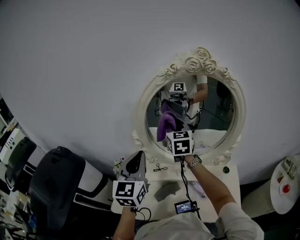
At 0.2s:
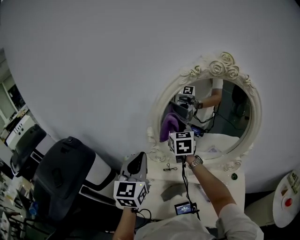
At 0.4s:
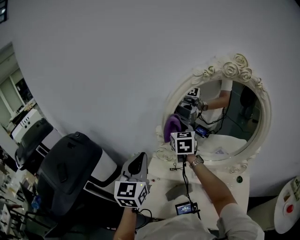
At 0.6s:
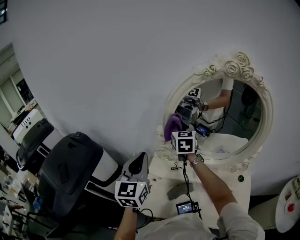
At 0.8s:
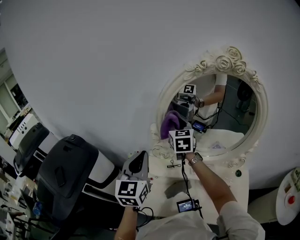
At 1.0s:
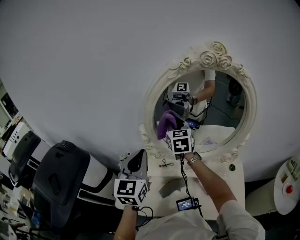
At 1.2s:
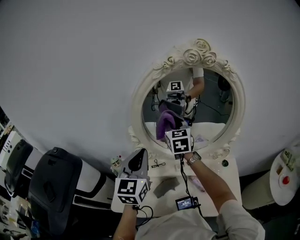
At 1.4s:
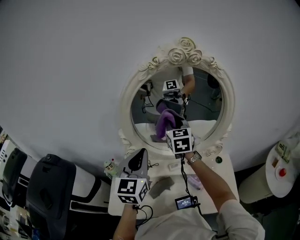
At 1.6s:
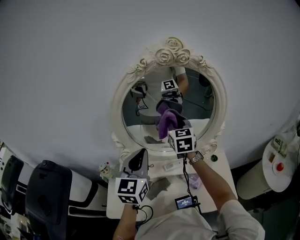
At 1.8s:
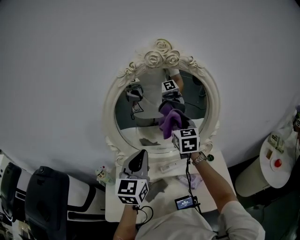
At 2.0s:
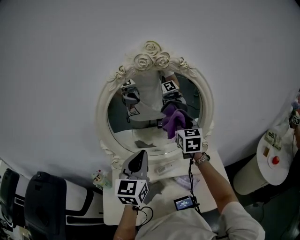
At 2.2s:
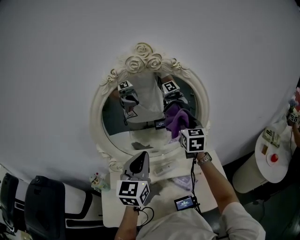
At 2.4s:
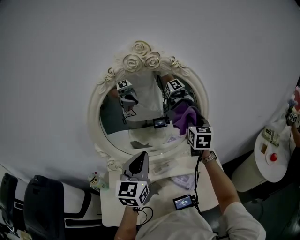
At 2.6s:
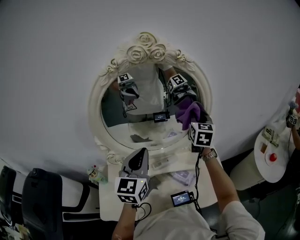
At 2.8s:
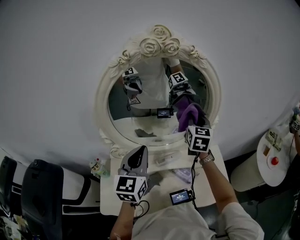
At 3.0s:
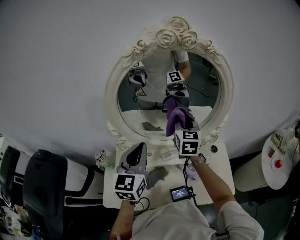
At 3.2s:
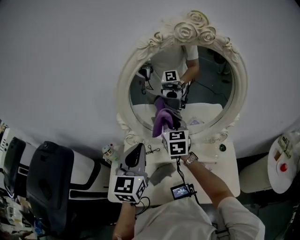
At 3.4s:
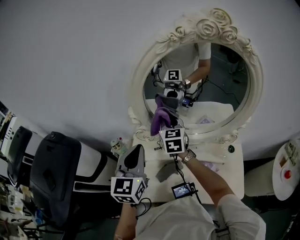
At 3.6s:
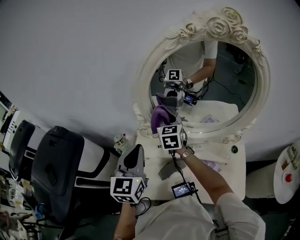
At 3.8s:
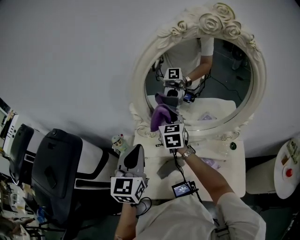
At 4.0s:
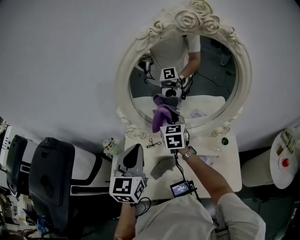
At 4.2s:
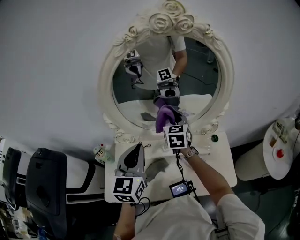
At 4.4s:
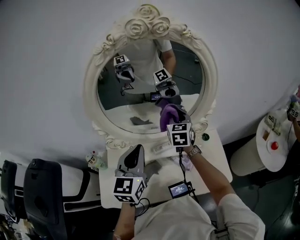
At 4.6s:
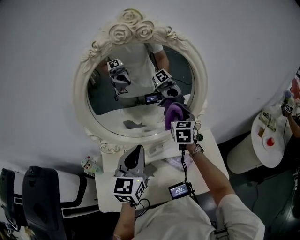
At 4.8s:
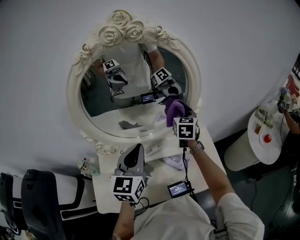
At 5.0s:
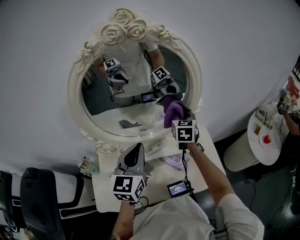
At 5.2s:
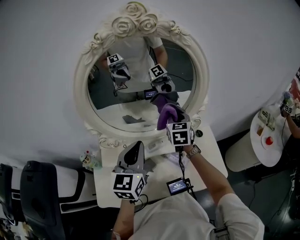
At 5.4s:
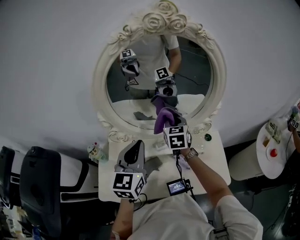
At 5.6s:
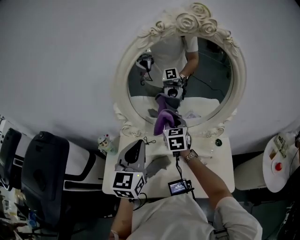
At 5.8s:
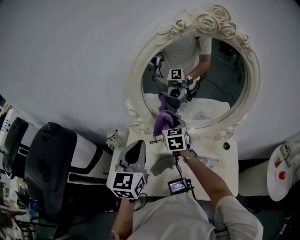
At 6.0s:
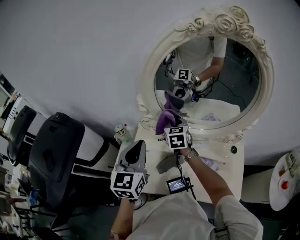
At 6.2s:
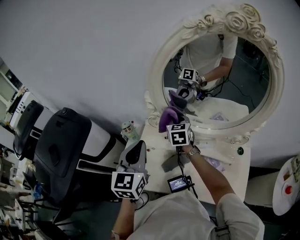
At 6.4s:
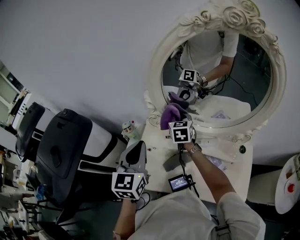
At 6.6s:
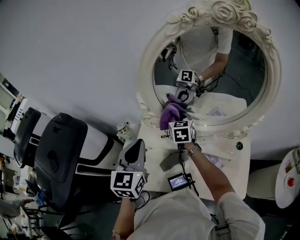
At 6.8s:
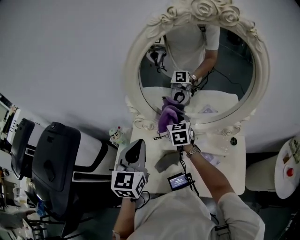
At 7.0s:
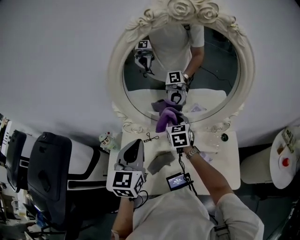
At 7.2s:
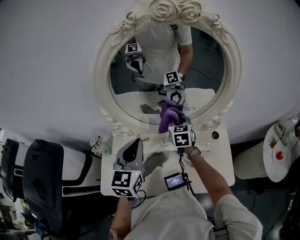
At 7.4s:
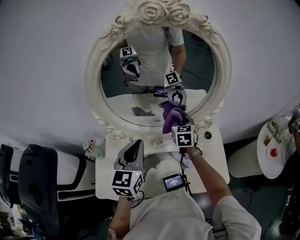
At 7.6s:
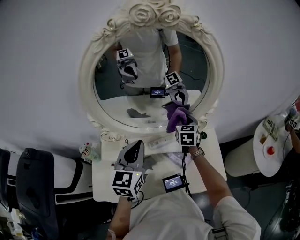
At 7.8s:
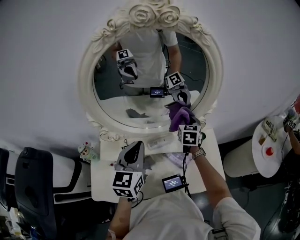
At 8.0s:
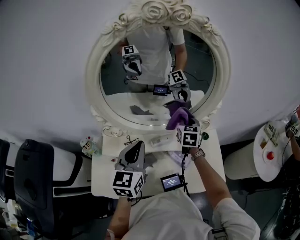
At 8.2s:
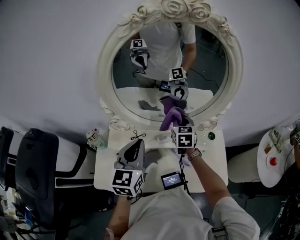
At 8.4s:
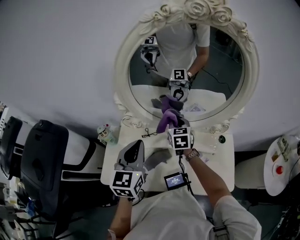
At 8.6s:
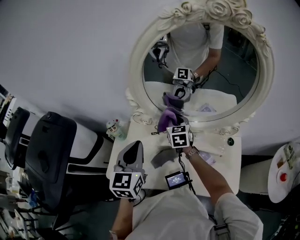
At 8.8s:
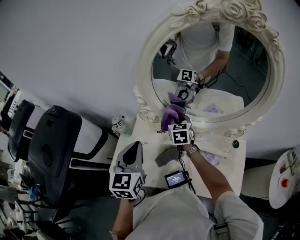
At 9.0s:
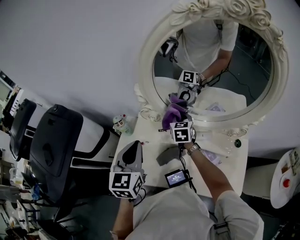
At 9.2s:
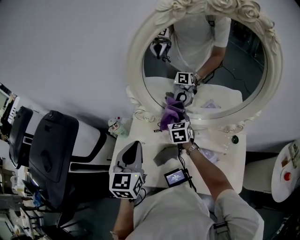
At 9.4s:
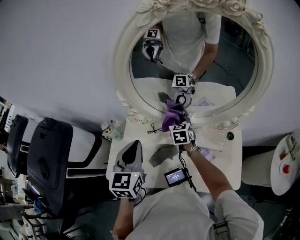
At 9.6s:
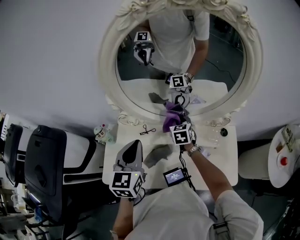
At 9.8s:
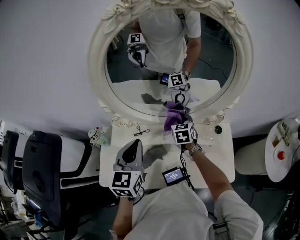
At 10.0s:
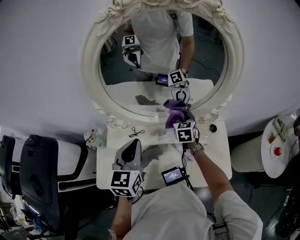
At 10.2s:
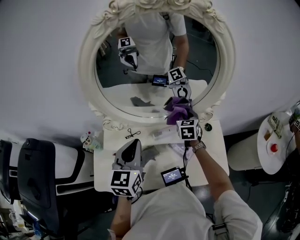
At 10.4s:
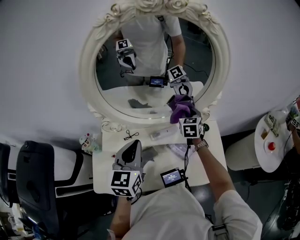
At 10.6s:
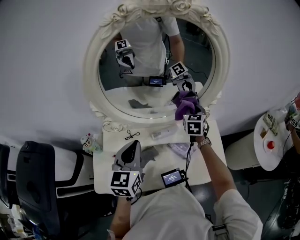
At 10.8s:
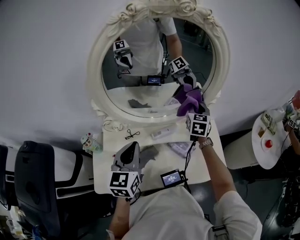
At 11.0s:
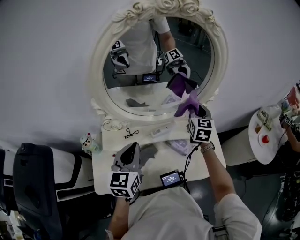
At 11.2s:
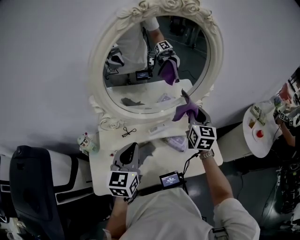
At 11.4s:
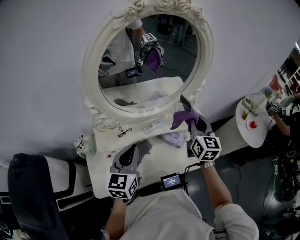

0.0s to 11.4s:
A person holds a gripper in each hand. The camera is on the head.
0.0s to 1.4s: The left gripper moves some 10 cm to the left and comes back, while the right gripper moves to the right, about 5 cm.
1.4s to 2.8s: The left gripper shifts approximately 5 cm to the right, while the right gripper moves to the right, some 20 cm, and rotates roughly 20 degrees.
2.8s to 4.2s: The right gripper travels to the left and downward by some 20 cm, while the left gripper travels to the left and back again, some 15 cm each way.
4.2s to 5.6s: The right gripper reaches about 20 cm to the right, then returns. Meanwhile the left gripper reaches roughly 10 cm to the right, then returns.
5.6s to 7.2s: The right gripper heads to the right and downward, covering approximately 10 cm; the left gripper moves roughly 10 cm to the left and comes back.
7.2s to 8.6s: The left gripper moves roughly 10 cm. The right gripper changes place by about 15 cm.
8.6s to 10.0s: The right gripper travels to the right by approximately 20 cm. The left gripper moves to the right, some 10 cm.
10.0s to 11.4s: The left gripper moves backward, some 10 cm. The right gripper shifts roughly 25 cm upward, backward and to the right, and changes its angle by approximately 30 degrees.

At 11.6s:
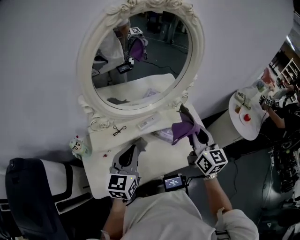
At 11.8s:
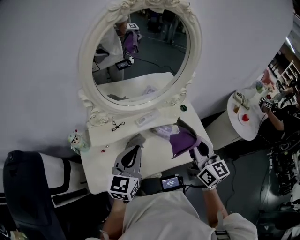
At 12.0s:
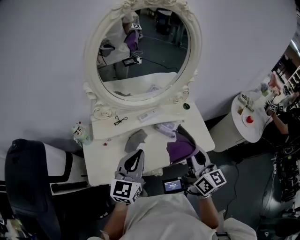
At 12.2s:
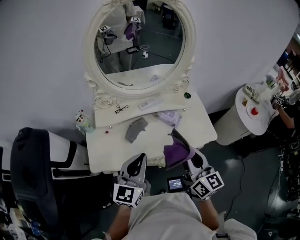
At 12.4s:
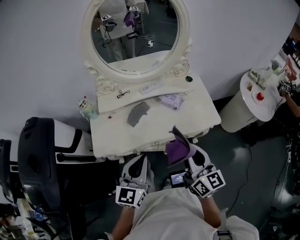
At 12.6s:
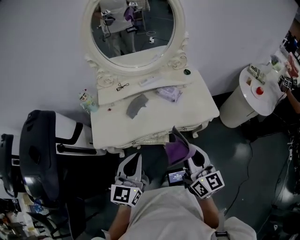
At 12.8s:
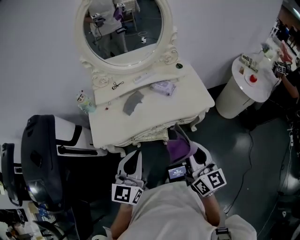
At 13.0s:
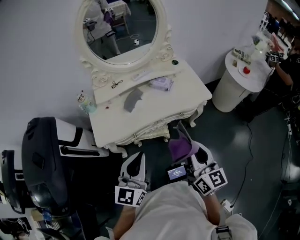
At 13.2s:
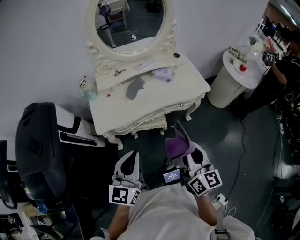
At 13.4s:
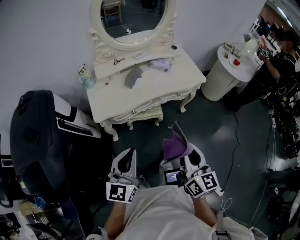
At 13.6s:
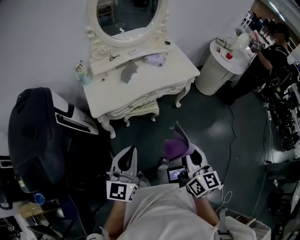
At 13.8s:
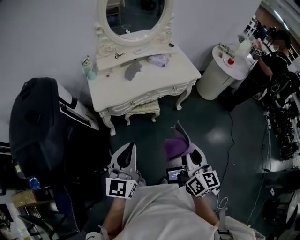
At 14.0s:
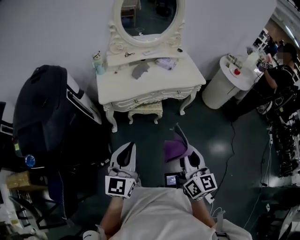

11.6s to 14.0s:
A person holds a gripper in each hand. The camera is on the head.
11.6s to 12.8s: The grippers both shift backward by about 35 cm.
12.8s to 14.0s: Both grippers move backward, approximately 35 cm.

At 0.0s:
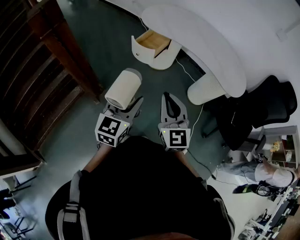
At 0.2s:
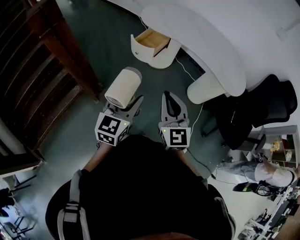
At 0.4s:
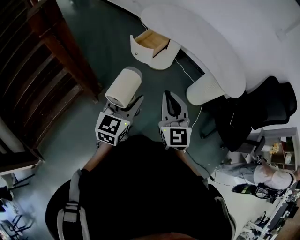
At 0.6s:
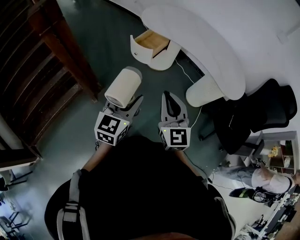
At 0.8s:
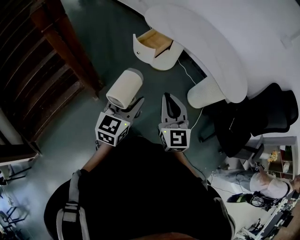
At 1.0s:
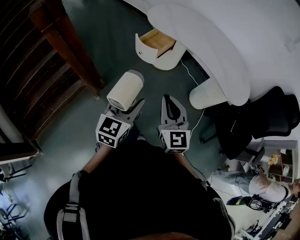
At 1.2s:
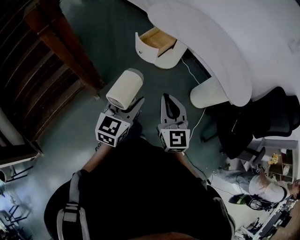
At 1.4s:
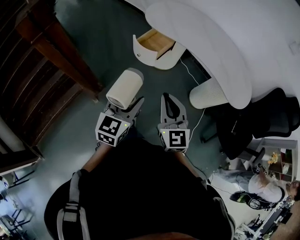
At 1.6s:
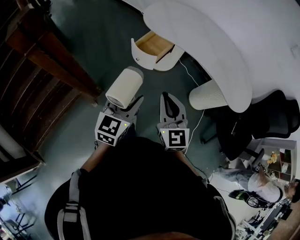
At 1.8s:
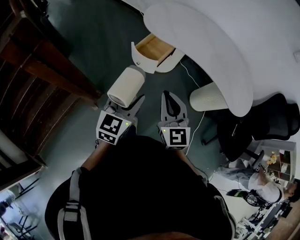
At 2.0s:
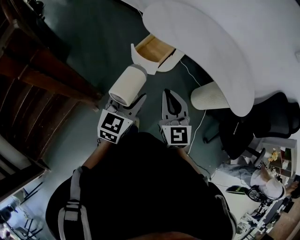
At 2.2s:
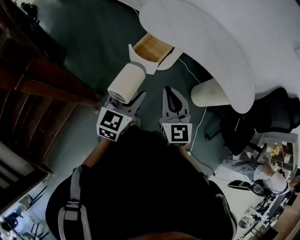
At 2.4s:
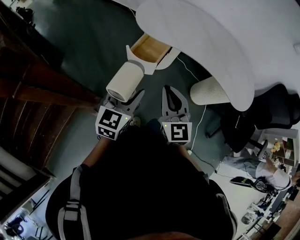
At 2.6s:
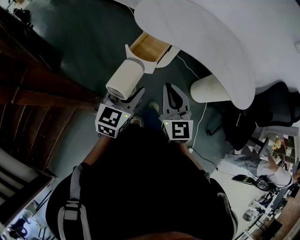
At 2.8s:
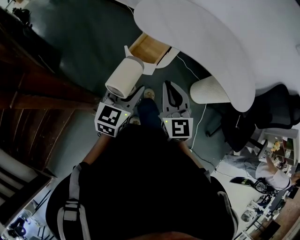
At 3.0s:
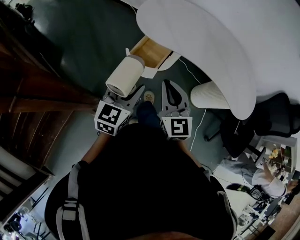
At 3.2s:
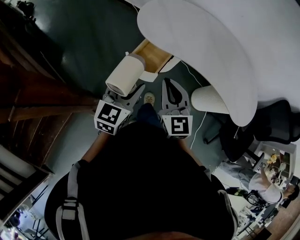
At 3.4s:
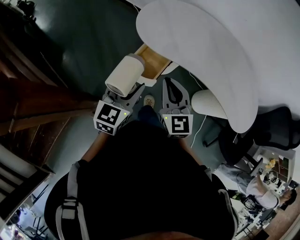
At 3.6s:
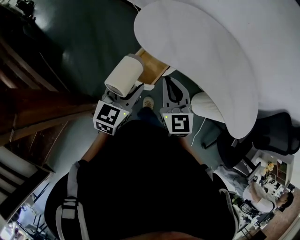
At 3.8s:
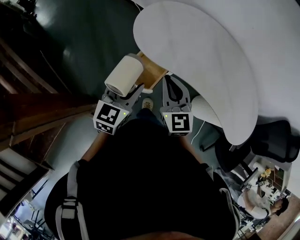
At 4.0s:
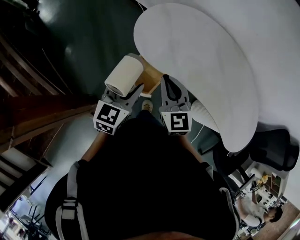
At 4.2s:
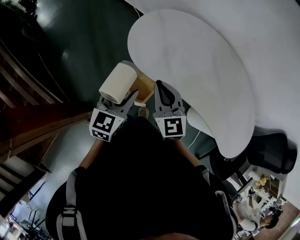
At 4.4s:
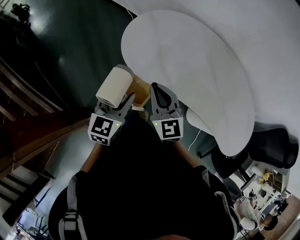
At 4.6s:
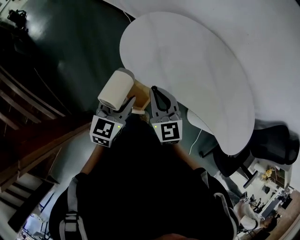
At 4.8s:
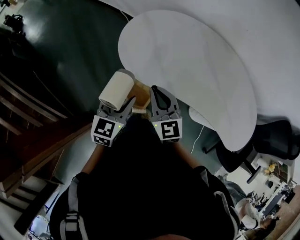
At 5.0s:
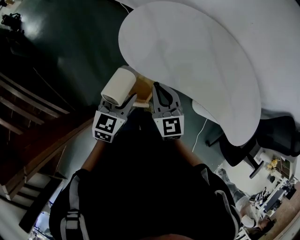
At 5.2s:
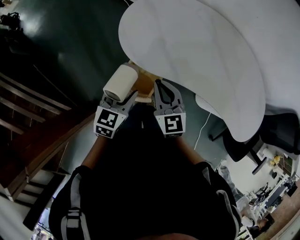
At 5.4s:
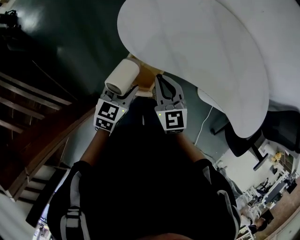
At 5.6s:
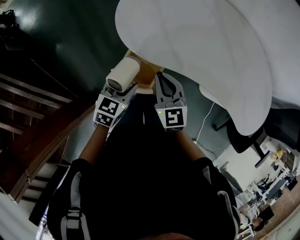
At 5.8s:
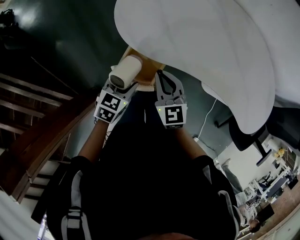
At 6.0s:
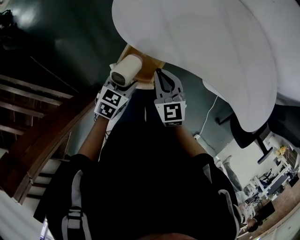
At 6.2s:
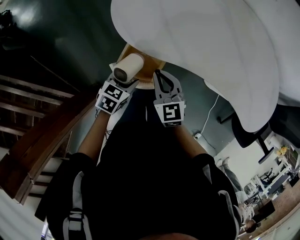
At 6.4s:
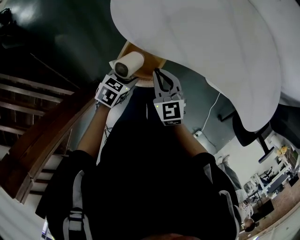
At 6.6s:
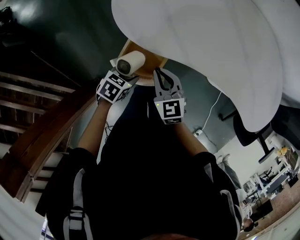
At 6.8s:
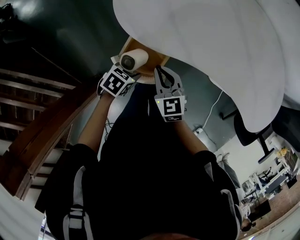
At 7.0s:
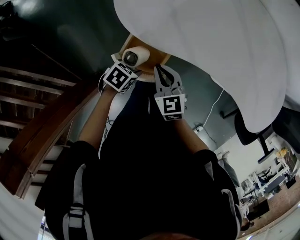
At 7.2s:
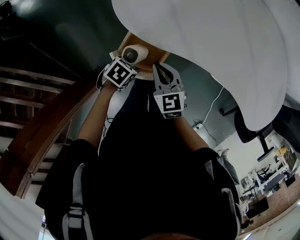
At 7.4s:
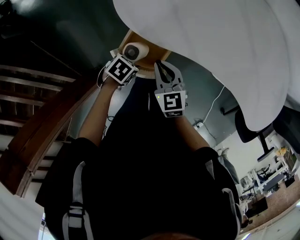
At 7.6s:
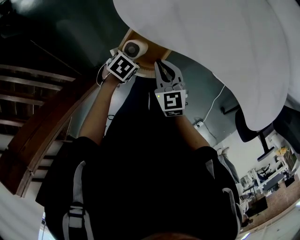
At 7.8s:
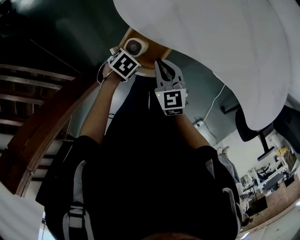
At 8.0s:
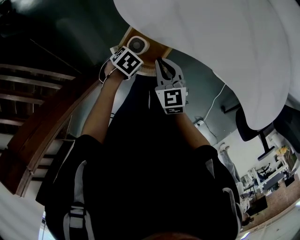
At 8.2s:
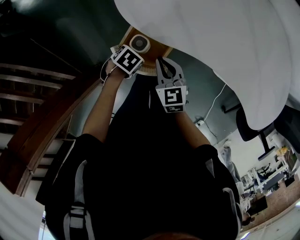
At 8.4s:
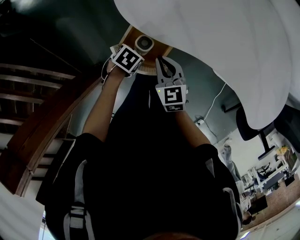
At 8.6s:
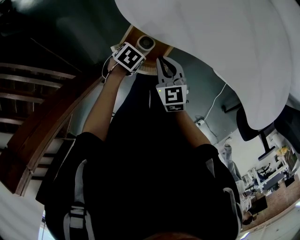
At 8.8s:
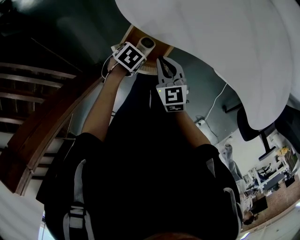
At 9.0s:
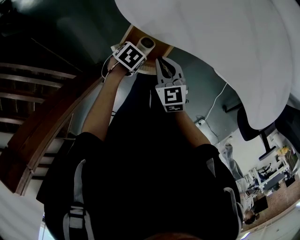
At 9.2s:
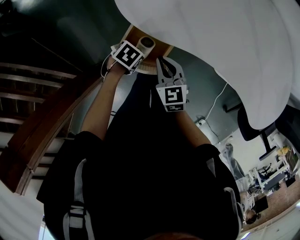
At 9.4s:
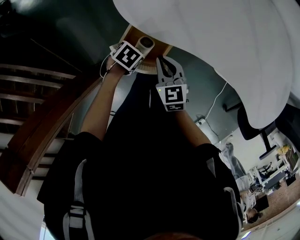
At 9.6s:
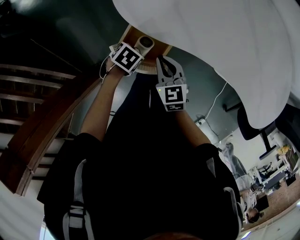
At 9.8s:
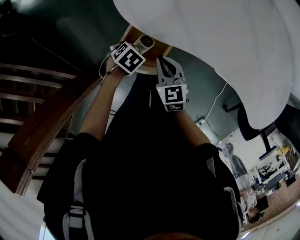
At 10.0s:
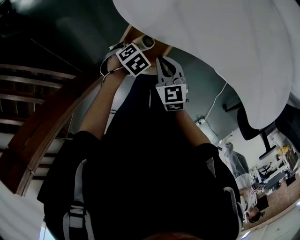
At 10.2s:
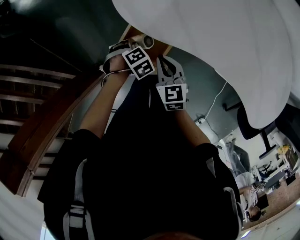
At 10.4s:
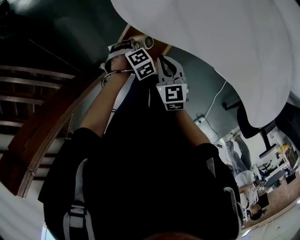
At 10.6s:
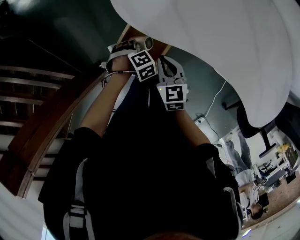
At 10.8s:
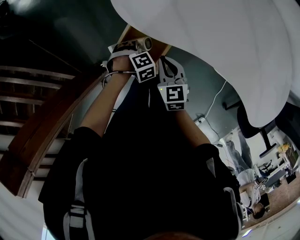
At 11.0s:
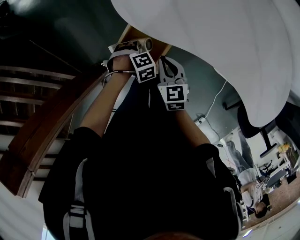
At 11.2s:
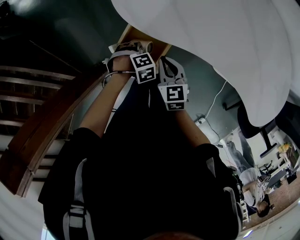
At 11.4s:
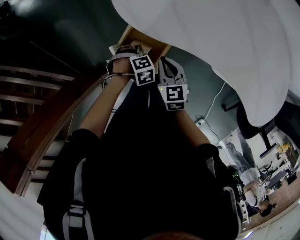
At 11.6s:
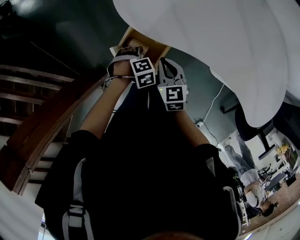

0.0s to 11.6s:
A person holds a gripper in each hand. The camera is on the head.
0.0s to 1.4s: Both grippers travel together forward, roughly 10 cm.
1.4s to 2.8s: Both grippers travel together forward, approximately 20 cm.
2.8s to 4.4s: The grippers both shift forward by approximately 30 cm.
4.4s to 5.8s: The two grippers go roughly 15 cm downward. The left gripper turns by about 30 degrees.
5.8s to 7.2s: The left gripper is displaced downward by approximately 15 cm, and swivels about 30 degrees, while the right gripper travels downward by approximately 10 cm.
7.2s to 8.8s: There are only small adjustments of the grippers.
8.8s to 10.2s: The left gripper rotates about 30 degrees.
10.2s to 11.6s: The left gripper ends up roughly 5 cm from where it was.
